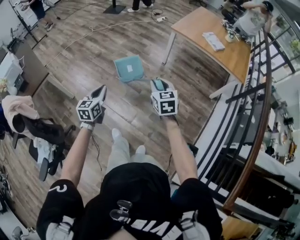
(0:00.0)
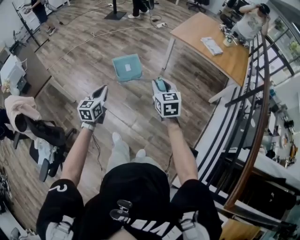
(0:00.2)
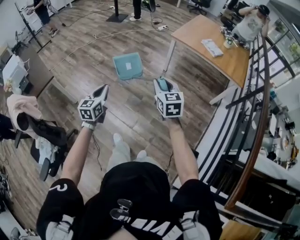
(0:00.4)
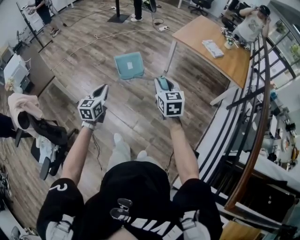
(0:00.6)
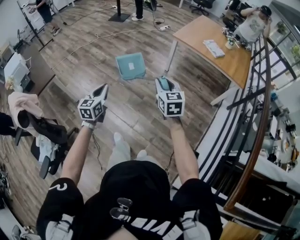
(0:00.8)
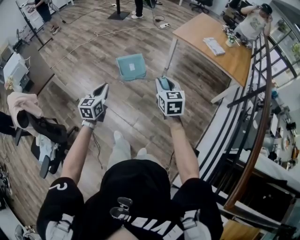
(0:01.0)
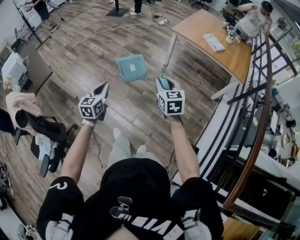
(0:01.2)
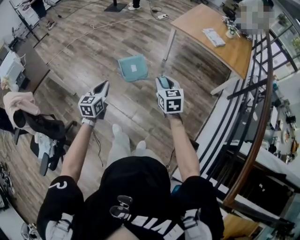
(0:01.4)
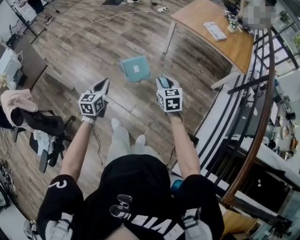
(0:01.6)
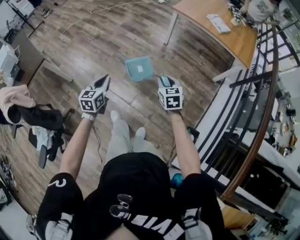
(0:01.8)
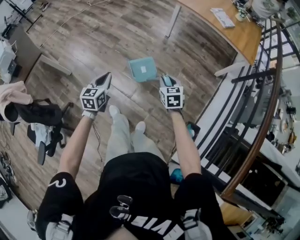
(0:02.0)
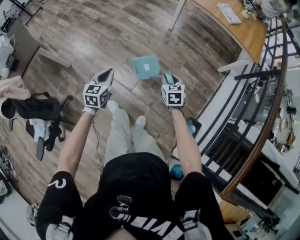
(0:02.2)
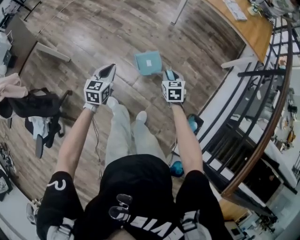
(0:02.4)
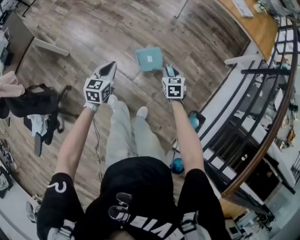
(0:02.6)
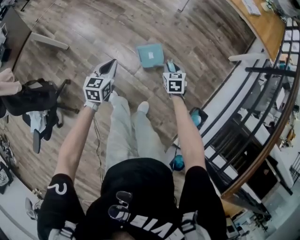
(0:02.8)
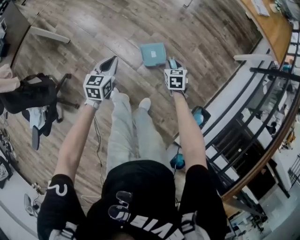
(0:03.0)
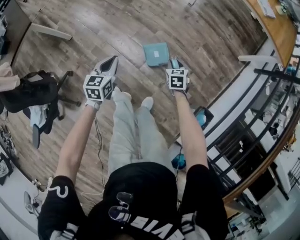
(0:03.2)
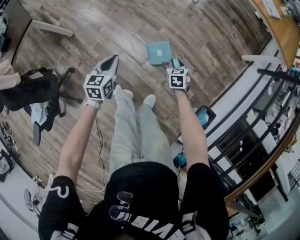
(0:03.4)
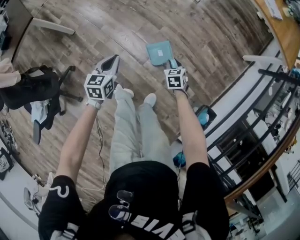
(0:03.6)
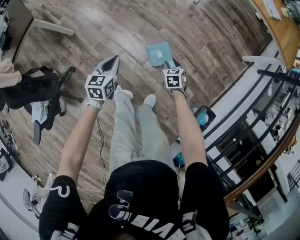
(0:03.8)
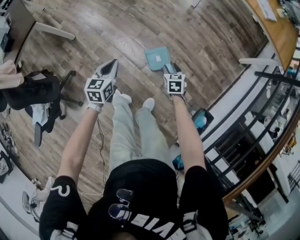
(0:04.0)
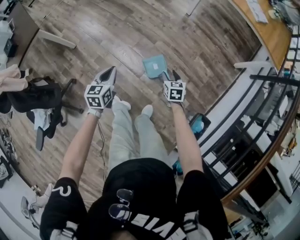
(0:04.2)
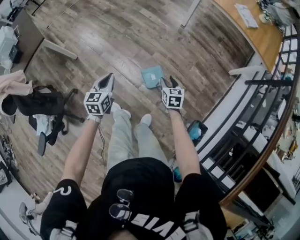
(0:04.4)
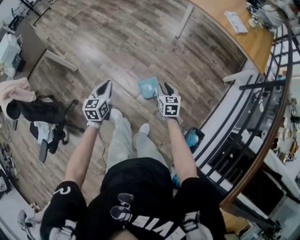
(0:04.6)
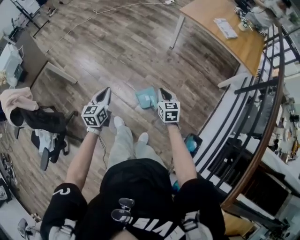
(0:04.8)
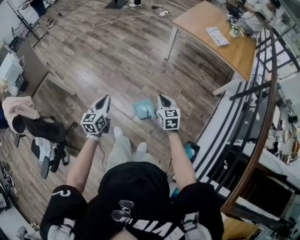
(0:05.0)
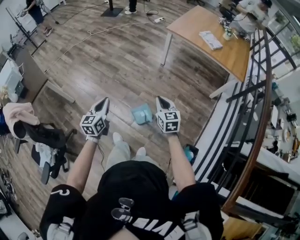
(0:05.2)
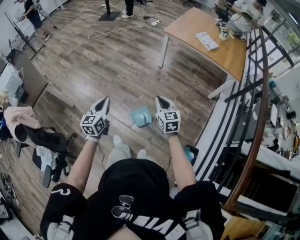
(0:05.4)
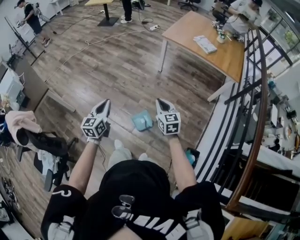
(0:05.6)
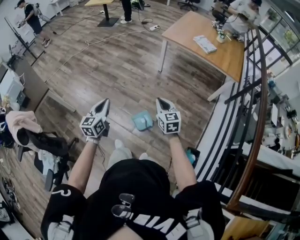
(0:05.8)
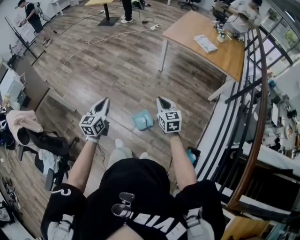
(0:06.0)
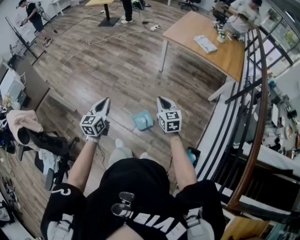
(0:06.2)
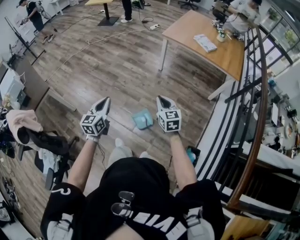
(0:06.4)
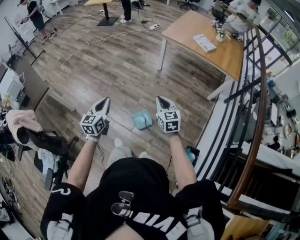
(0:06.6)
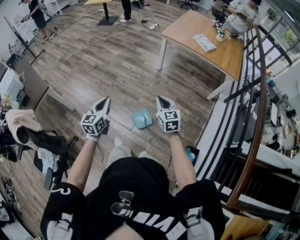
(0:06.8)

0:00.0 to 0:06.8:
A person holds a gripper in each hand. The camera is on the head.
0:00.0 to 0:01.4: The right gripper reaches some 10 cm upward, then returns.
0:01.4 to 0:02.8: The right gripper travels downward by approximately 35 cm, and turns by about 20 degrees, while the left gripper travels downward by roughly 25 cm.
0:02.8 to 0:04.0: The left gripper shifts by about 5 cm. Meanwhile the right gripper shifts roughly 10 cm downward, and opens up.
0:04.0 to 0:05.4: The two grippers go some 35 cm upward. The left gripper rotates roughly 20 degrees; the right gripper points its fingers roughly 30 degrees further upward, and closes up.
0:05.4 to 0:06.8: The grippers stay close to where they were, moving slightly.

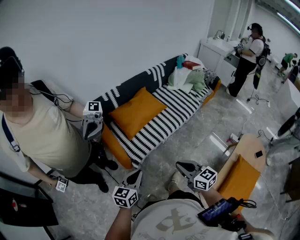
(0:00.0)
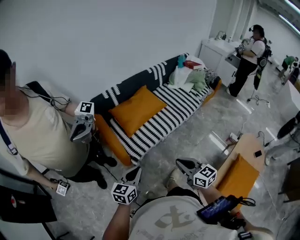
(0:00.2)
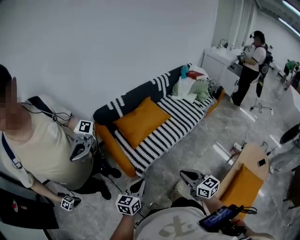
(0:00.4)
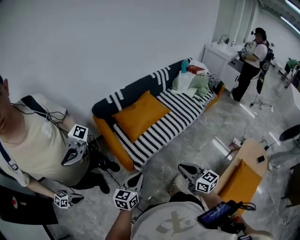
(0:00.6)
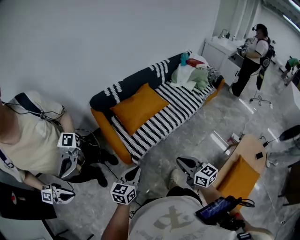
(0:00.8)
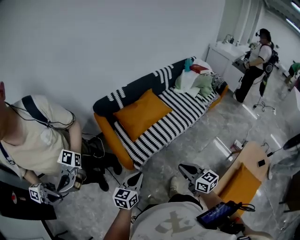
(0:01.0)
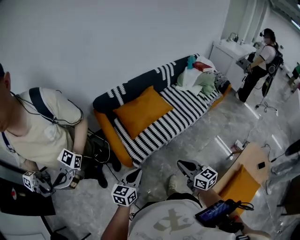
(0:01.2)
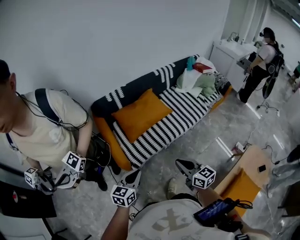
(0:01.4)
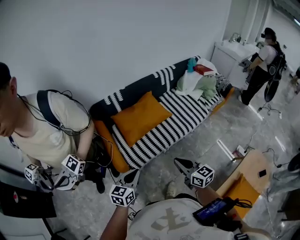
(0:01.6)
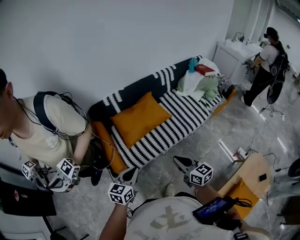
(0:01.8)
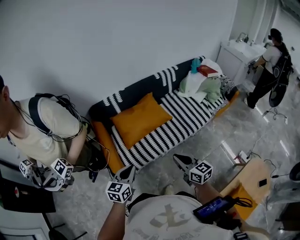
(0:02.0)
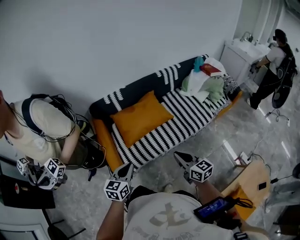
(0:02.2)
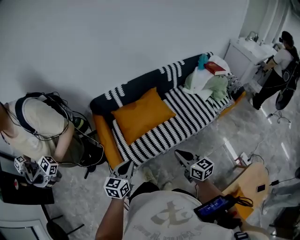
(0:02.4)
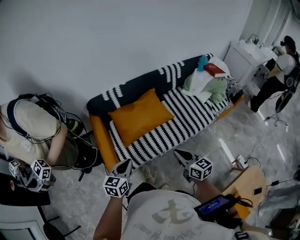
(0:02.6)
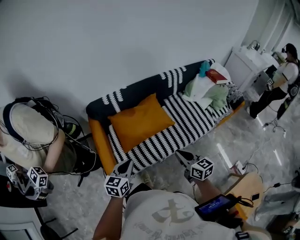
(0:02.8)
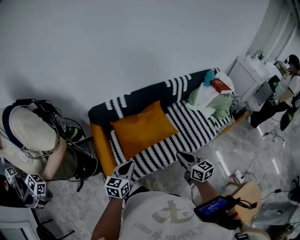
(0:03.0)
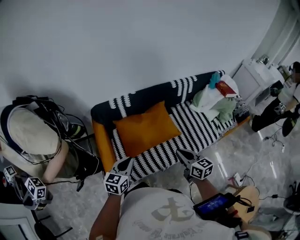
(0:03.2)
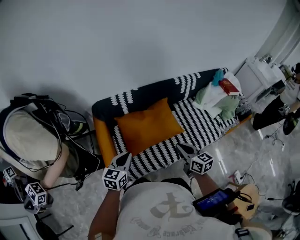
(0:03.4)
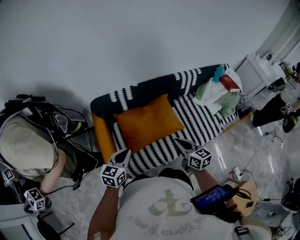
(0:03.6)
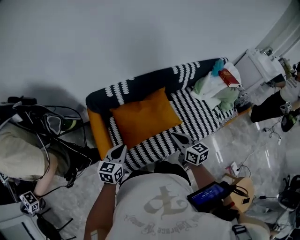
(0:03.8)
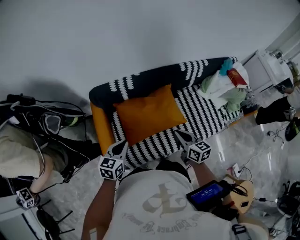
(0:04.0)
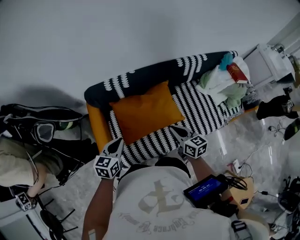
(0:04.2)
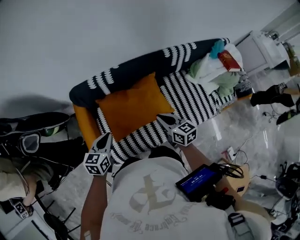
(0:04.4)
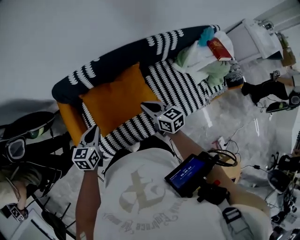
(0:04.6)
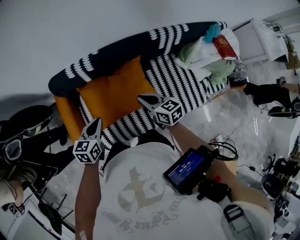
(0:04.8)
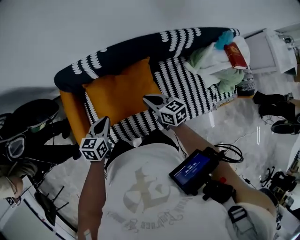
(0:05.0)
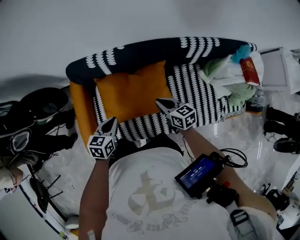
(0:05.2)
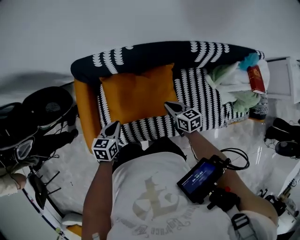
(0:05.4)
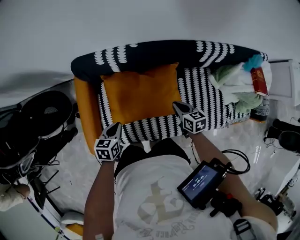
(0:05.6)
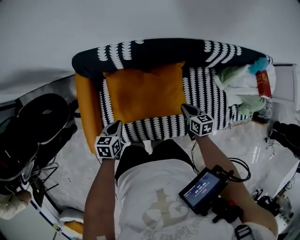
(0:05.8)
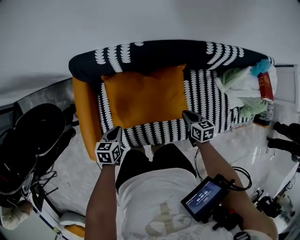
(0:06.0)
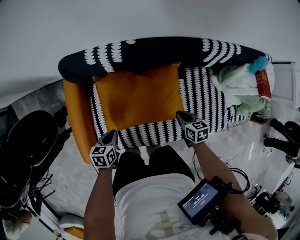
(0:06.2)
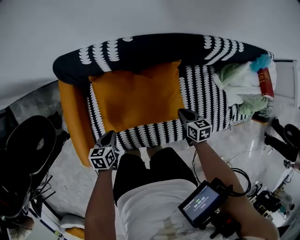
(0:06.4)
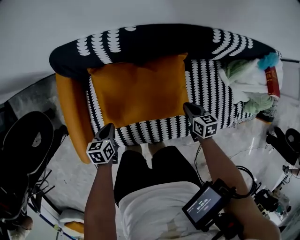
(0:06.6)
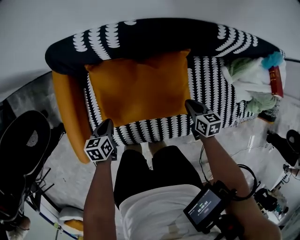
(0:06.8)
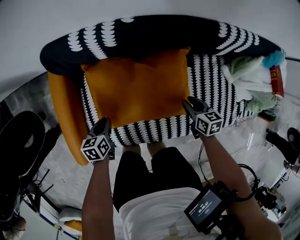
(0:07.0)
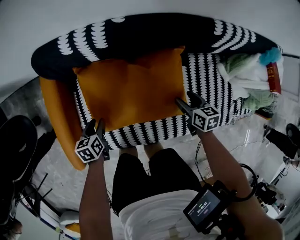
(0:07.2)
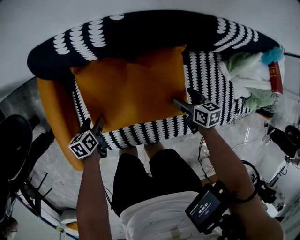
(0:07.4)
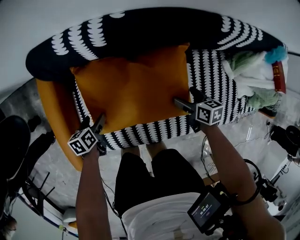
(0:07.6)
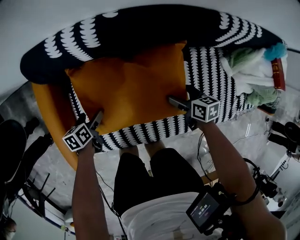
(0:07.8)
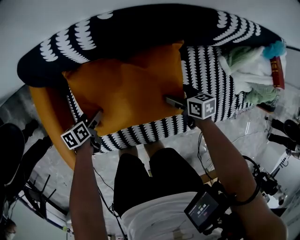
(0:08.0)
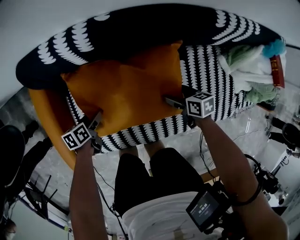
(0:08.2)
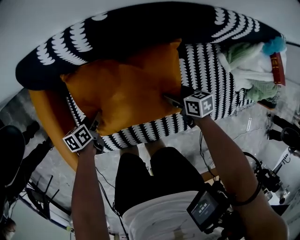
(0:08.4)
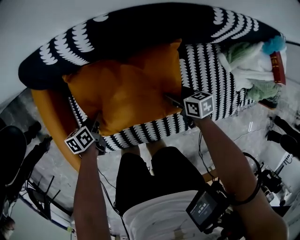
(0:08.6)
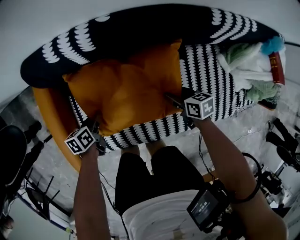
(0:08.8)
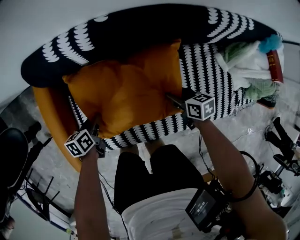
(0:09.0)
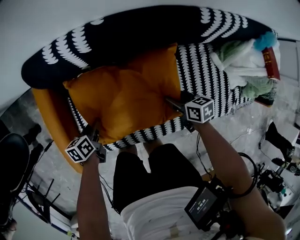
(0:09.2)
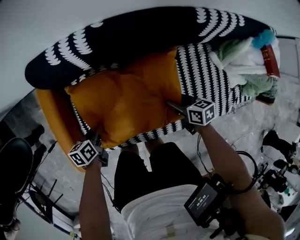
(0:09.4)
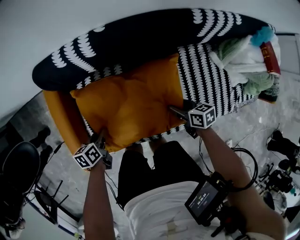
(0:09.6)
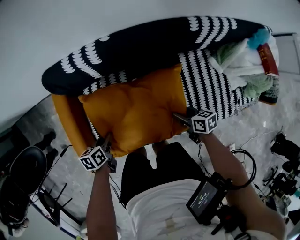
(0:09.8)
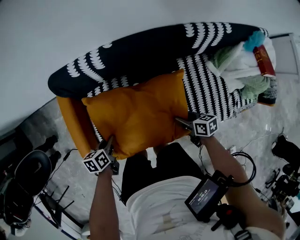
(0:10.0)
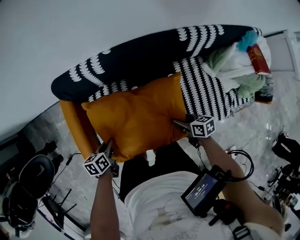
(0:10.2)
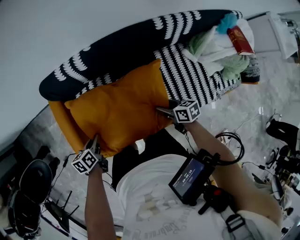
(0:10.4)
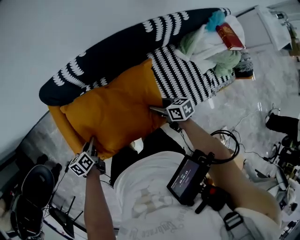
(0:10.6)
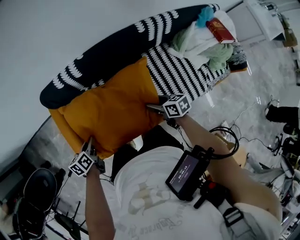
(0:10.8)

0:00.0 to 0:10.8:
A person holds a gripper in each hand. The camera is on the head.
0:00.0 to 0:01.6: Both grippers move forward, about 10 cm.
0:01.6 to 0:03.0: Both grippers travel together forward, approximately 20 cm.
0:03.0 to 0:04.6: The grippers both shift forward by roughly 20 cm.
0:04.6 to 0:06.2: The grippers both shift downward by roughly 20 cm. The left gripper changes its angle by some 30 degrees, while the right gripper swivels approximately 30 degrees.
0:06.2 to 0:07.8: The right gripper shifts approximately 10 cm downward, and opens up; the left gripper is displaced downward and forward by about 15 cm, and opens.
0:07.8 to 0:09.2: The right gripper closes up; the left gripper heads upward, covering approximately 5 cm, and closes its fingers.
0:09.2 to 0:10.8: The left gripper shifts approximately 20 cm upward. Meanwhile the right gripper moves upward and backward, some 20 cm.

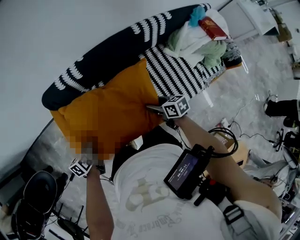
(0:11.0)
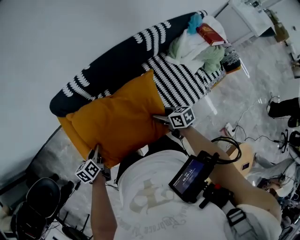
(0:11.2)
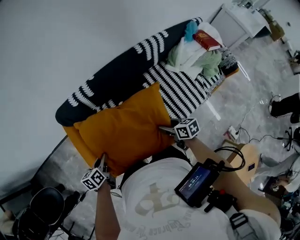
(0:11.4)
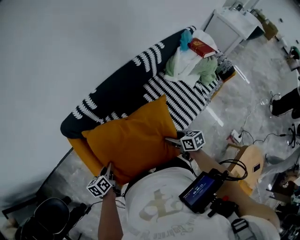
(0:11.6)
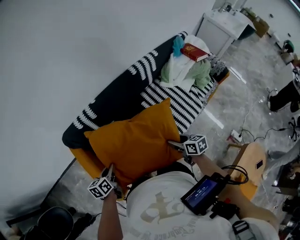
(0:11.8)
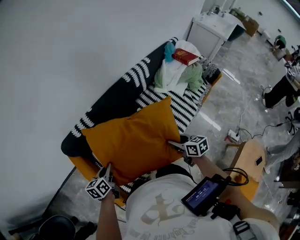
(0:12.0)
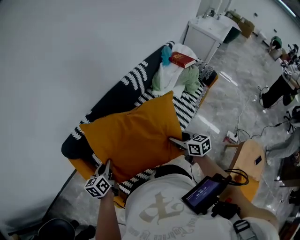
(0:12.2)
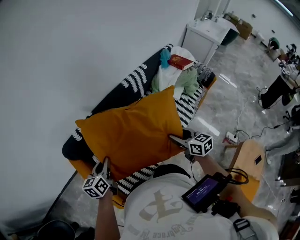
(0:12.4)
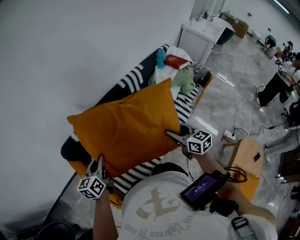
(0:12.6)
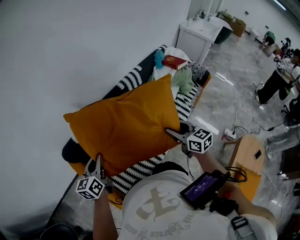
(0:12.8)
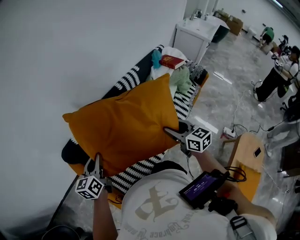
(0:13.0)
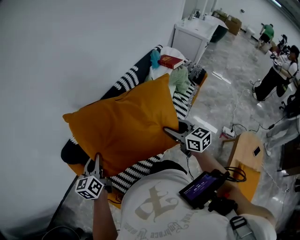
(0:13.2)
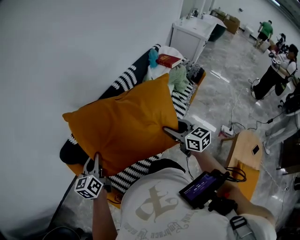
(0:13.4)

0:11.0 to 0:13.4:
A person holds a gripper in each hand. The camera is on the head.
0:11.0 to 0:12.2: The right gripper changes place by some 20 cm, and rotates about 30 degrees, while the left gripper heads upward, covering about 10 cm, and rotates roughly 30 degrees.
0:12.2 to 0:13.4: The grippers both shift upward by about 10 cm.

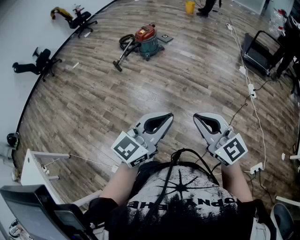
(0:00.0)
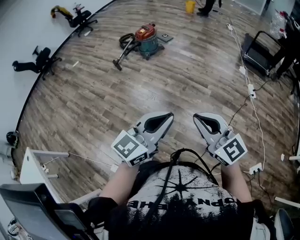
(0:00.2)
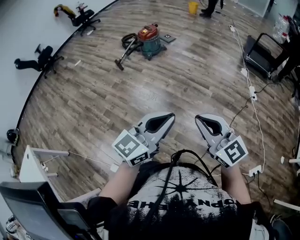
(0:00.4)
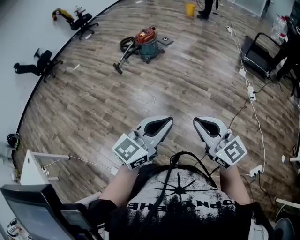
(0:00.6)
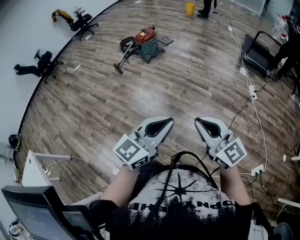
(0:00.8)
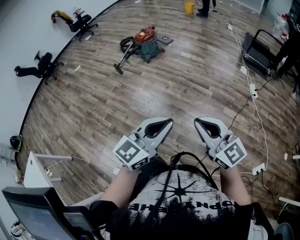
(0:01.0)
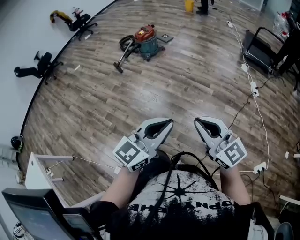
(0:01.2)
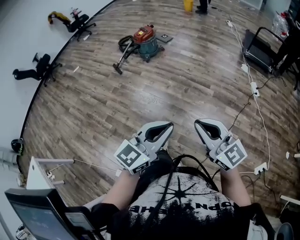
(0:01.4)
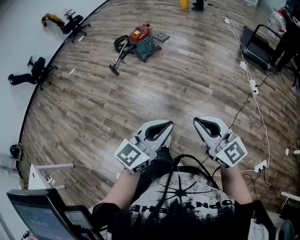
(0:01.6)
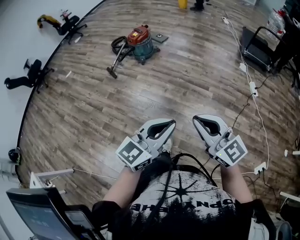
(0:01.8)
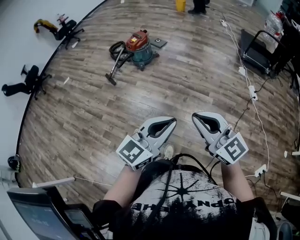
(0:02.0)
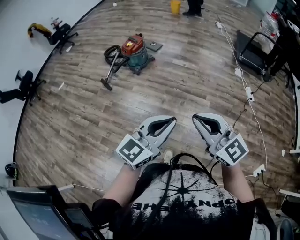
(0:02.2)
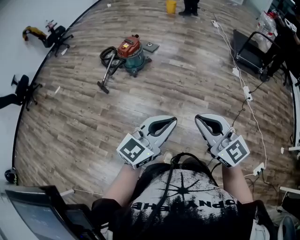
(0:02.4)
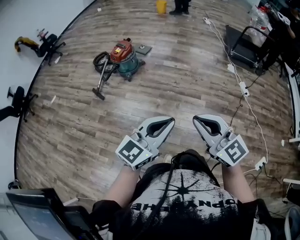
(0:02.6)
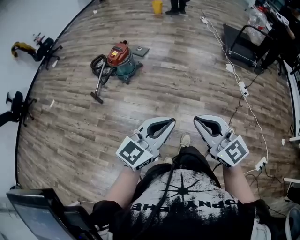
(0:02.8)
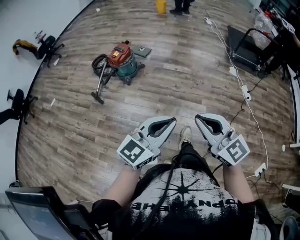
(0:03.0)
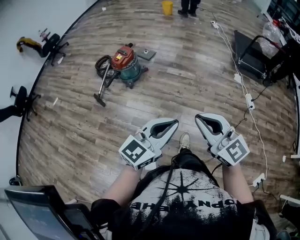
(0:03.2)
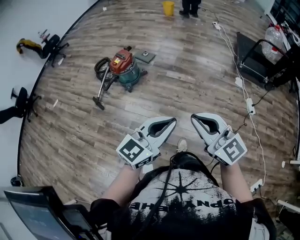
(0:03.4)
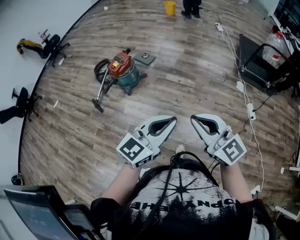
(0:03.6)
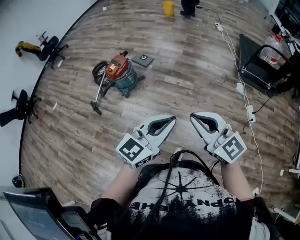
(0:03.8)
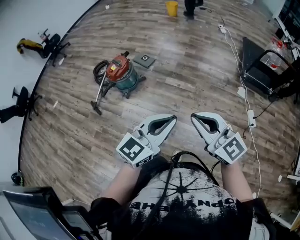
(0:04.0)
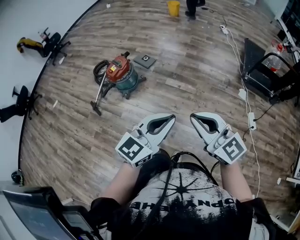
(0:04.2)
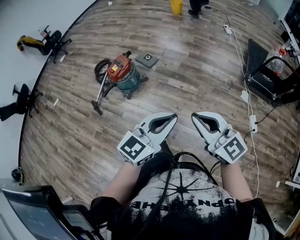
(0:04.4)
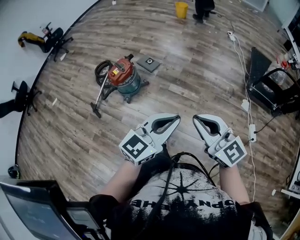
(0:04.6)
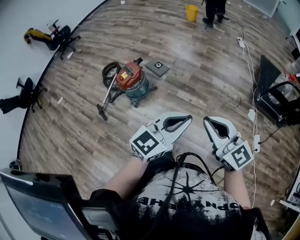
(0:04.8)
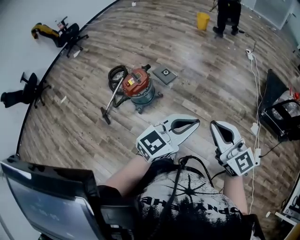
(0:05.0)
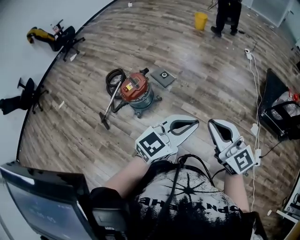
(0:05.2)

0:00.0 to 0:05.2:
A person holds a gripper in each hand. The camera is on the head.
0:00.0 to 0:01.8: Both grippers move forward, some 15 cm.
0:01.8 to 0:03.4: Both grippers move forward, roughly 40 cm.
0:03.4 to 0:05.2: The pair of grippers is taken forward, about 50 cm.
